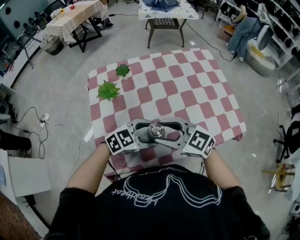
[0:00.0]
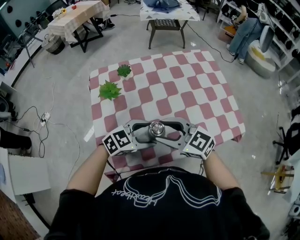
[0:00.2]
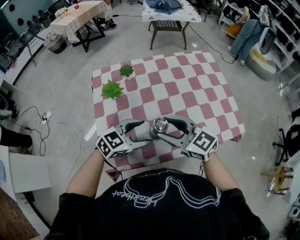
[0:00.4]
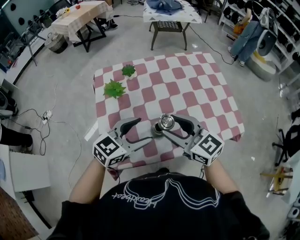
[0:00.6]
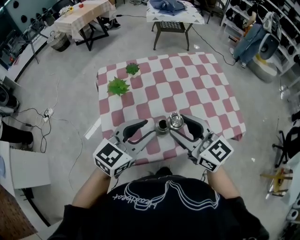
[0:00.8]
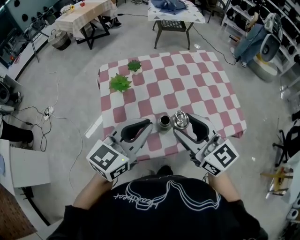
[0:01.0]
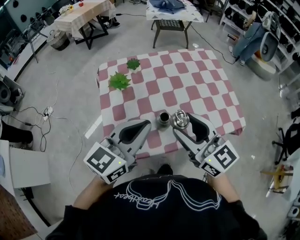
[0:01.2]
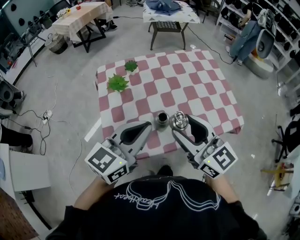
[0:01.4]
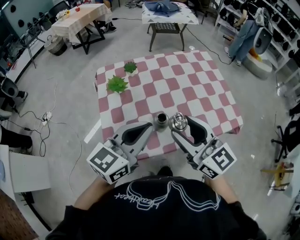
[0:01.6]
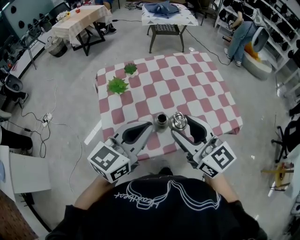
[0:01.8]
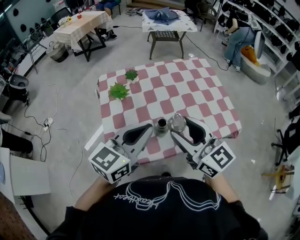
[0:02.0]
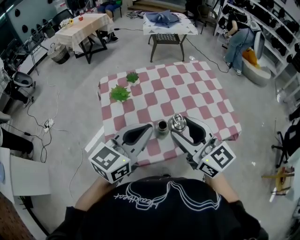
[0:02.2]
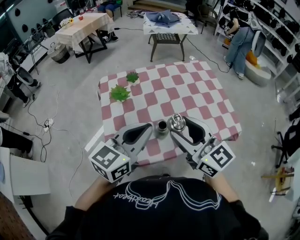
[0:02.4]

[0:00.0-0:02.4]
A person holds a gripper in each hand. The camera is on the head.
0:00.0 to 0:01.2: The left gripper goes about 20 cm upward, turns by approximately 50 degrees, and closes, while the right gripper travels upward by roughly 15 cm, and swivels approximately 30 degrees.
0:01.2 to 0:02.4: The grippers make only small movements.

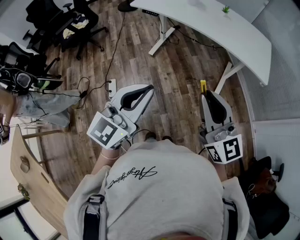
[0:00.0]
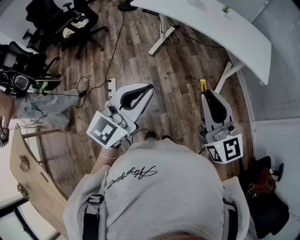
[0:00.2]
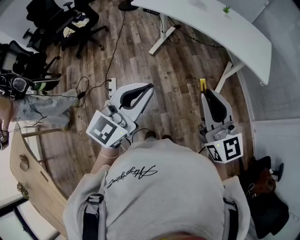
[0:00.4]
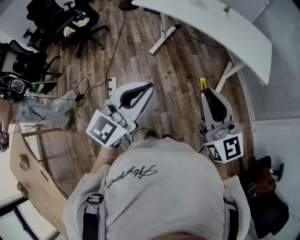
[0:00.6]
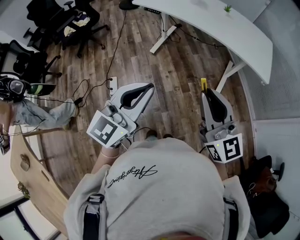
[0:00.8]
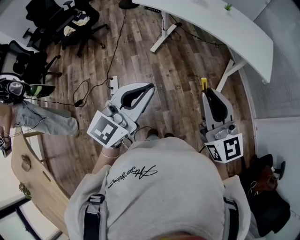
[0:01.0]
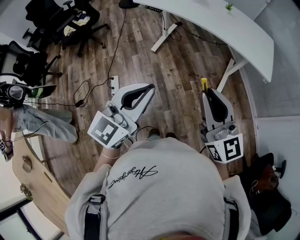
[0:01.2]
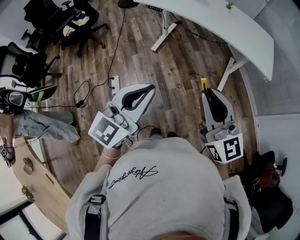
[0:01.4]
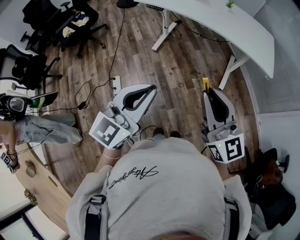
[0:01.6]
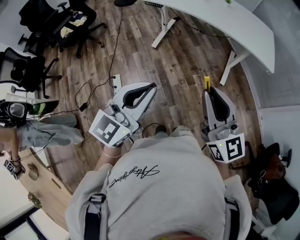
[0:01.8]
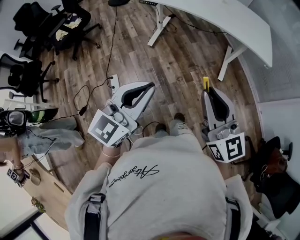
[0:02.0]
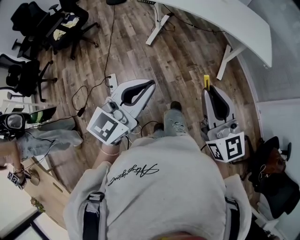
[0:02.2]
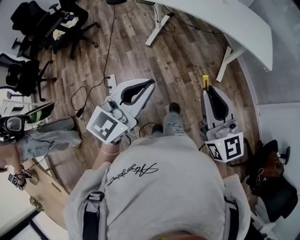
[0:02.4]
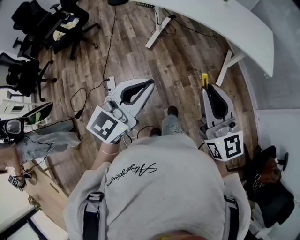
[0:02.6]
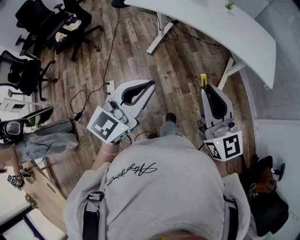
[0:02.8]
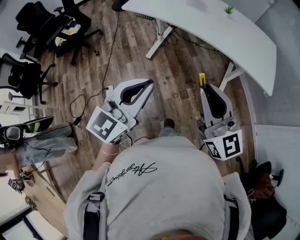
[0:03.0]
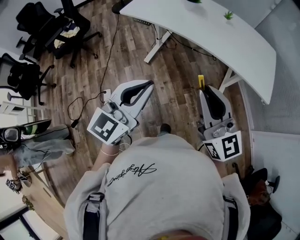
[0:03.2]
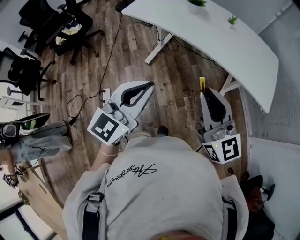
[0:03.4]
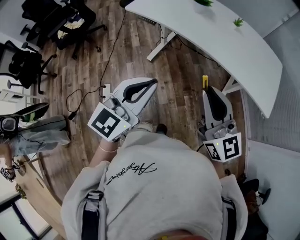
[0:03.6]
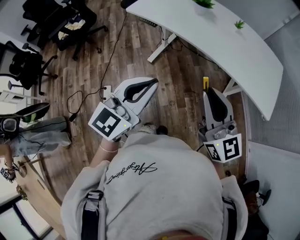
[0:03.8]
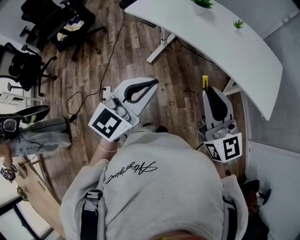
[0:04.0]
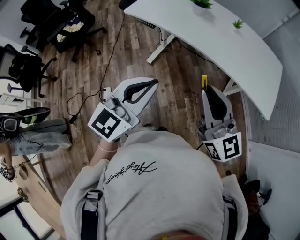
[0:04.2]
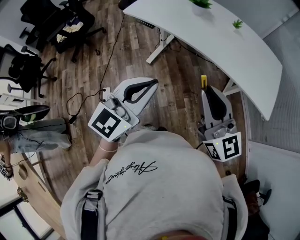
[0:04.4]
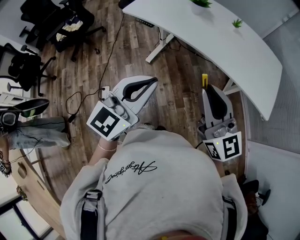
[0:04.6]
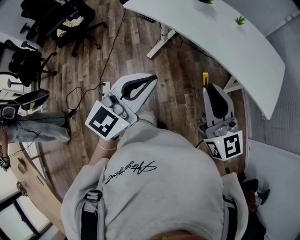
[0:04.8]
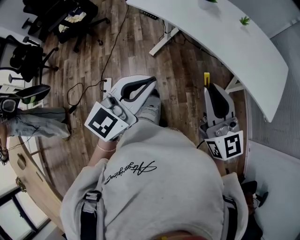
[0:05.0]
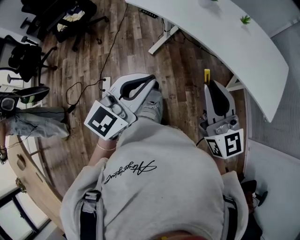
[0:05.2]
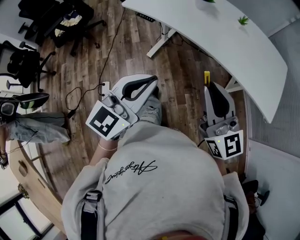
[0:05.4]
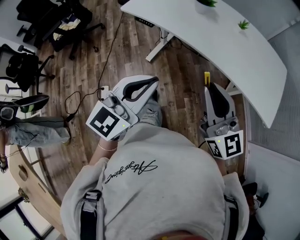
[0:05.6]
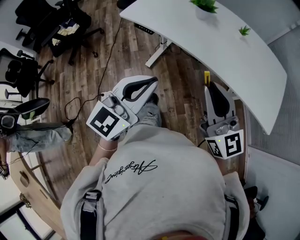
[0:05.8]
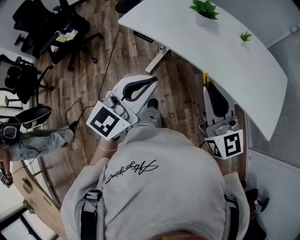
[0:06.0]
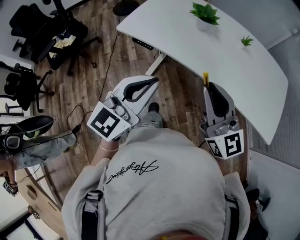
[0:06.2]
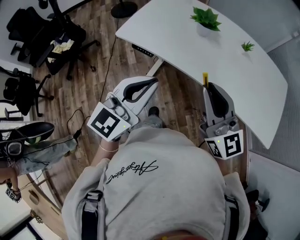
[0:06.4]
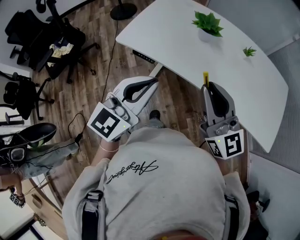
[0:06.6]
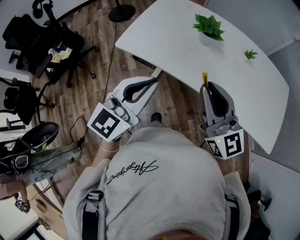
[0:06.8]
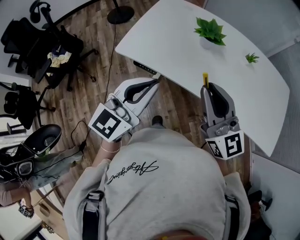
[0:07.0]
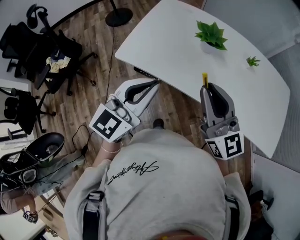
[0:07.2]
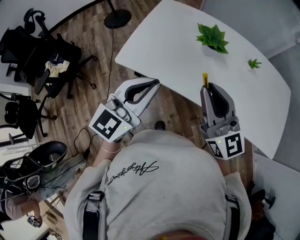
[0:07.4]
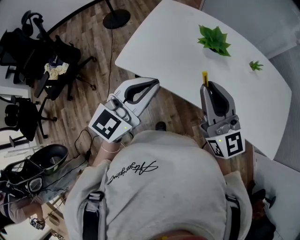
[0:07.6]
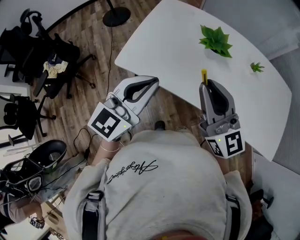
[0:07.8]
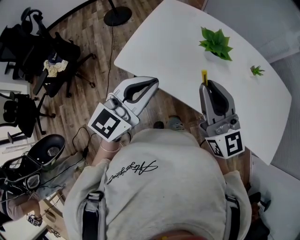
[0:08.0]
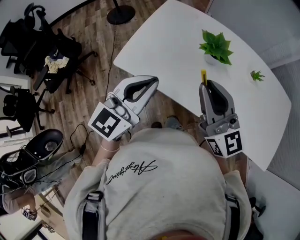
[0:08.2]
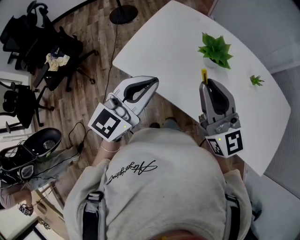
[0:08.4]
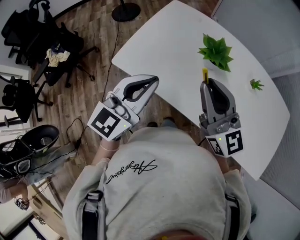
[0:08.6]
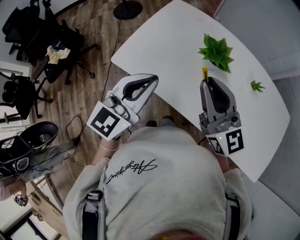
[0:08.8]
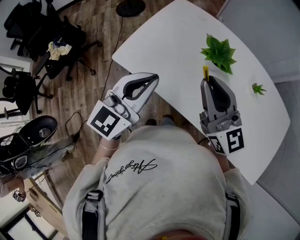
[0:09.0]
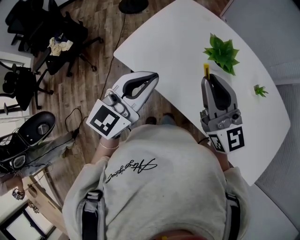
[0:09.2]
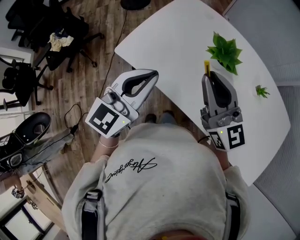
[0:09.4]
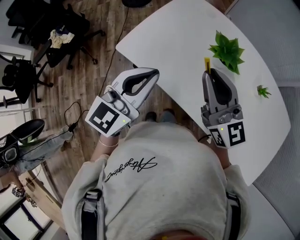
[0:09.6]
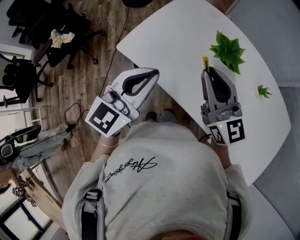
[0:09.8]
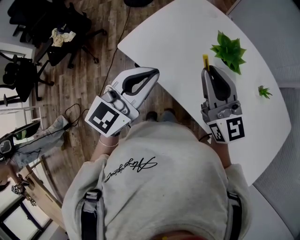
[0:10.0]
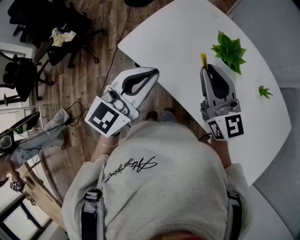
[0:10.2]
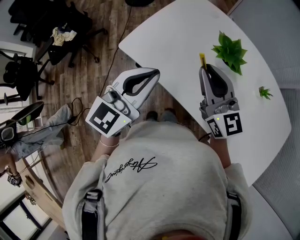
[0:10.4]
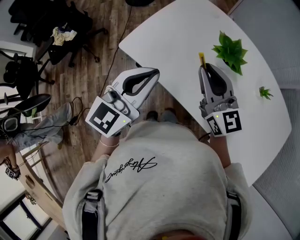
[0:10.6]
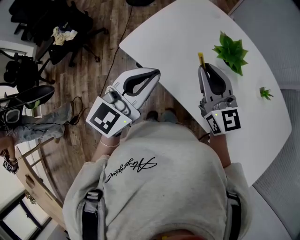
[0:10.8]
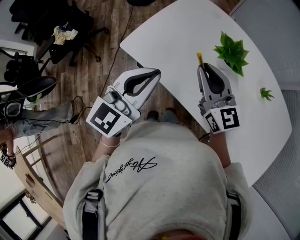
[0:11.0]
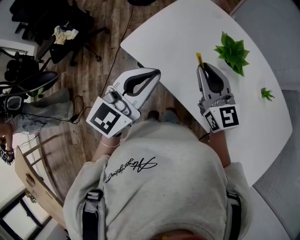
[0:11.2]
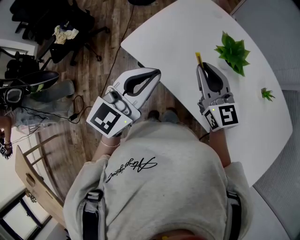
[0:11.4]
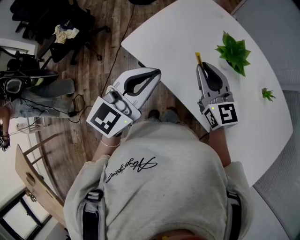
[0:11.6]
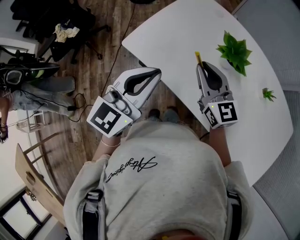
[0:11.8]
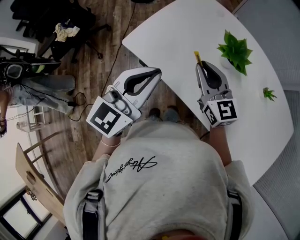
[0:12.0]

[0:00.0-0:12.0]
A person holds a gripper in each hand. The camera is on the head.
0:00.0 to 0:01.6: The grippers both shift to the left by approximately 5 cm.
0:01.6 to 0:03.0: The two grippers go approximately 15 cm forward.
0:03.0 to 0:04.4: The two grippers go approximately 10 cm forward.
0:04.4 to 0:06.0: Both grippers travel together forward, approximately 15 cm.
0:06.0 to 0:07.6: Both grippers travel together forward and to the left, roughly 25 cm.
0:07.6 to 0:09.0: The grippers both shift forward by approximately 5 cm.
0:09.0 to 0:10.4: The right gripper changes place by approximately 5 cm.
0:10.4 to 0:12.0: The right gripper shifts approximately 5 cm downward.

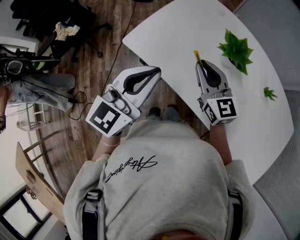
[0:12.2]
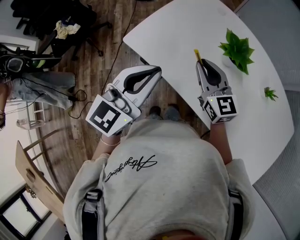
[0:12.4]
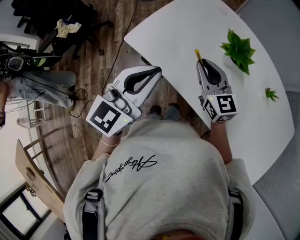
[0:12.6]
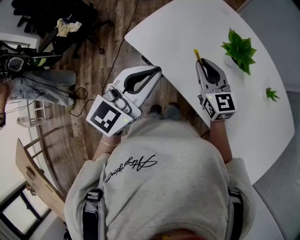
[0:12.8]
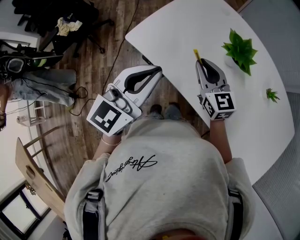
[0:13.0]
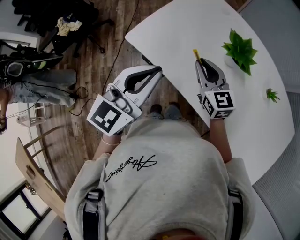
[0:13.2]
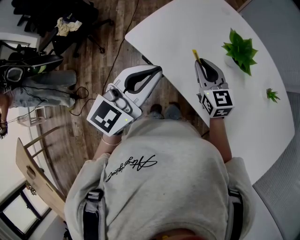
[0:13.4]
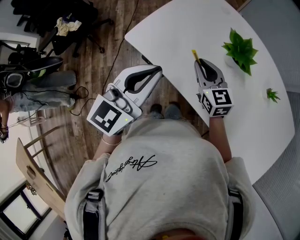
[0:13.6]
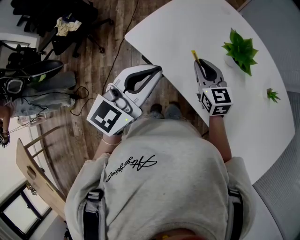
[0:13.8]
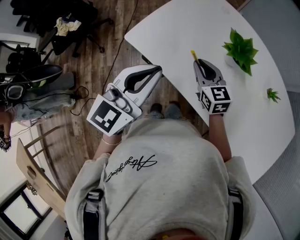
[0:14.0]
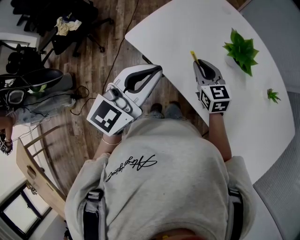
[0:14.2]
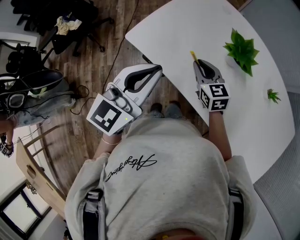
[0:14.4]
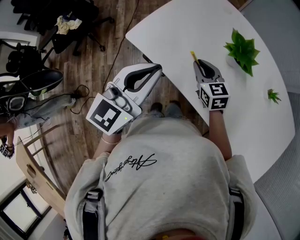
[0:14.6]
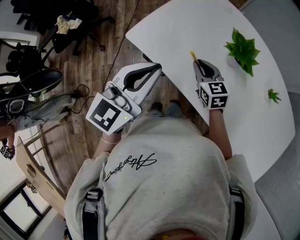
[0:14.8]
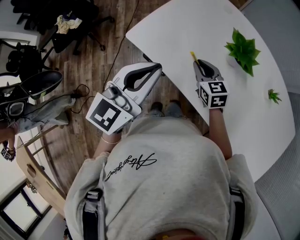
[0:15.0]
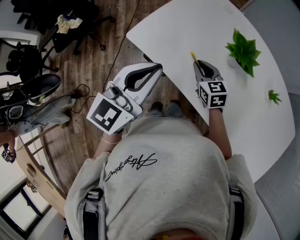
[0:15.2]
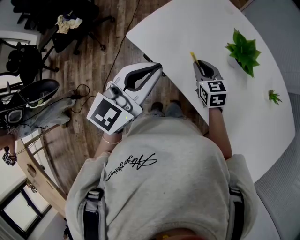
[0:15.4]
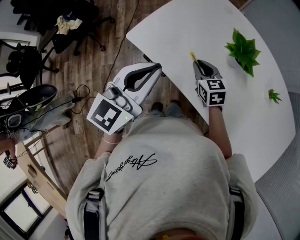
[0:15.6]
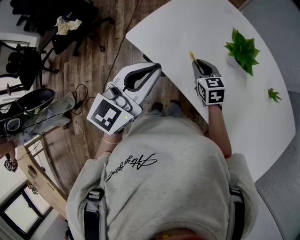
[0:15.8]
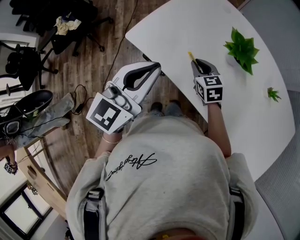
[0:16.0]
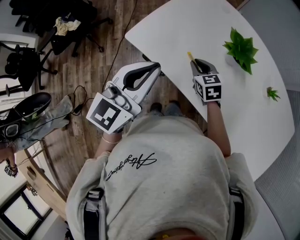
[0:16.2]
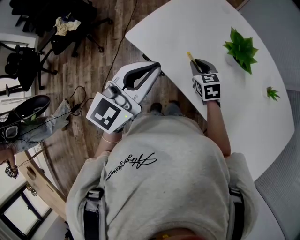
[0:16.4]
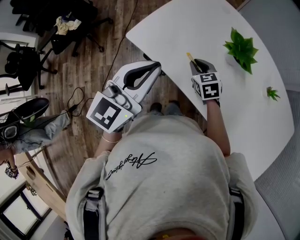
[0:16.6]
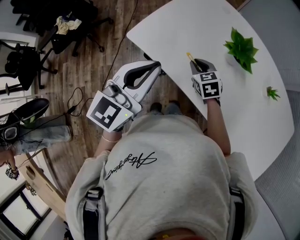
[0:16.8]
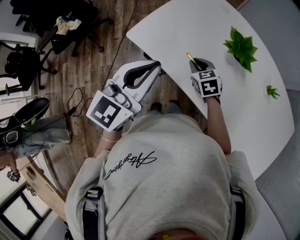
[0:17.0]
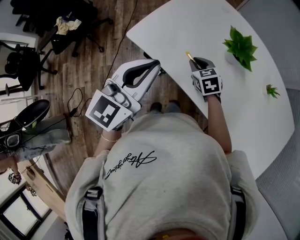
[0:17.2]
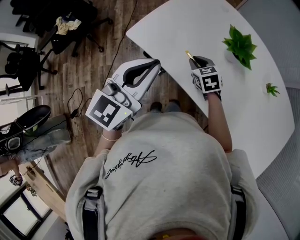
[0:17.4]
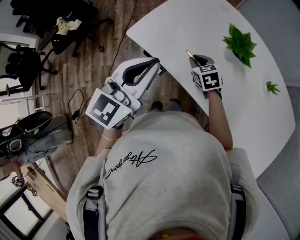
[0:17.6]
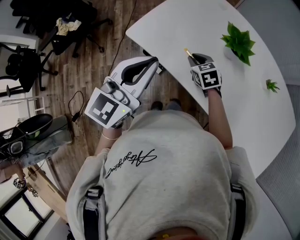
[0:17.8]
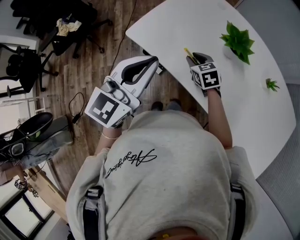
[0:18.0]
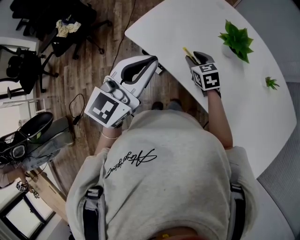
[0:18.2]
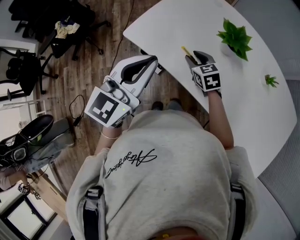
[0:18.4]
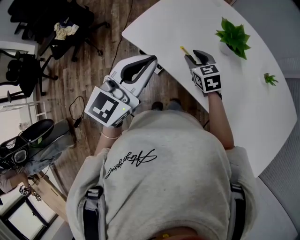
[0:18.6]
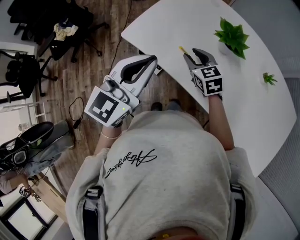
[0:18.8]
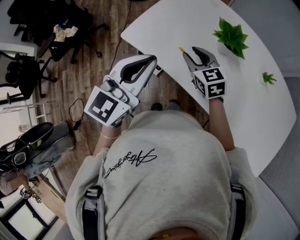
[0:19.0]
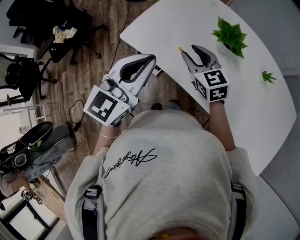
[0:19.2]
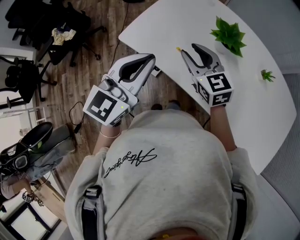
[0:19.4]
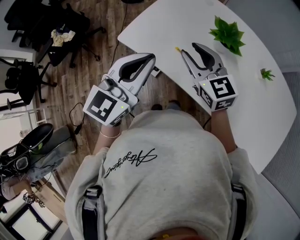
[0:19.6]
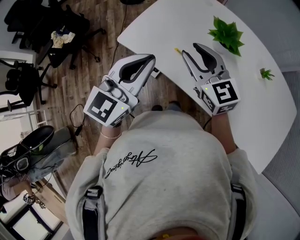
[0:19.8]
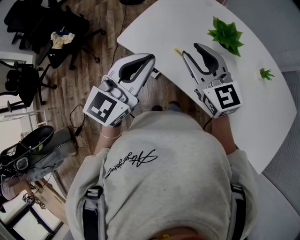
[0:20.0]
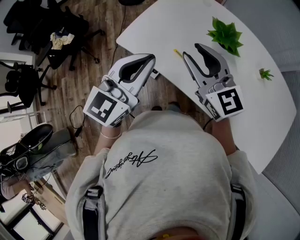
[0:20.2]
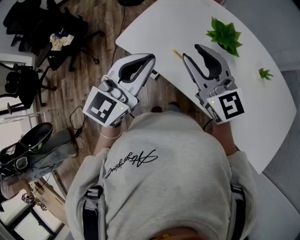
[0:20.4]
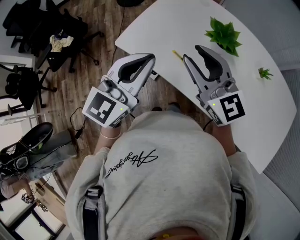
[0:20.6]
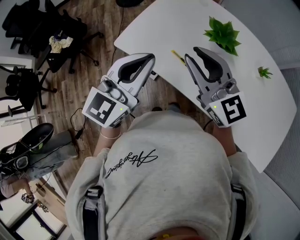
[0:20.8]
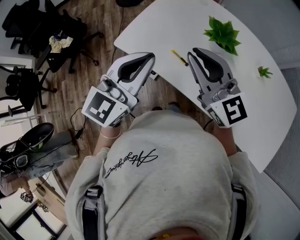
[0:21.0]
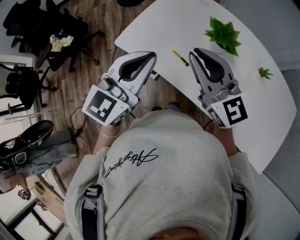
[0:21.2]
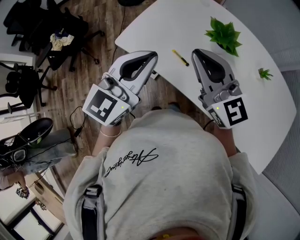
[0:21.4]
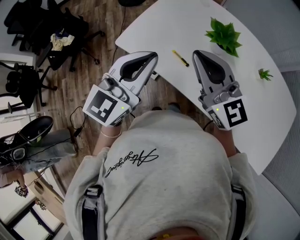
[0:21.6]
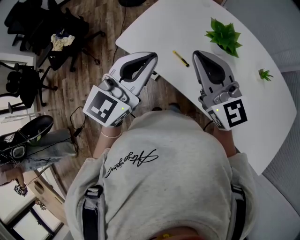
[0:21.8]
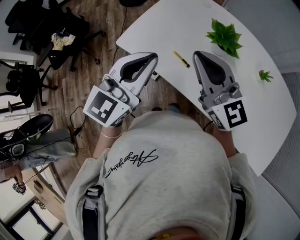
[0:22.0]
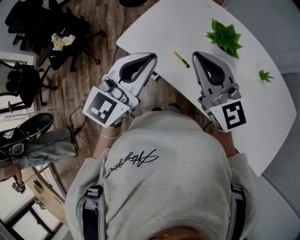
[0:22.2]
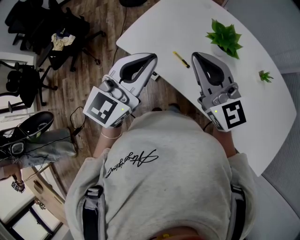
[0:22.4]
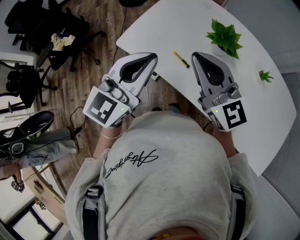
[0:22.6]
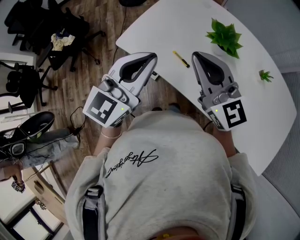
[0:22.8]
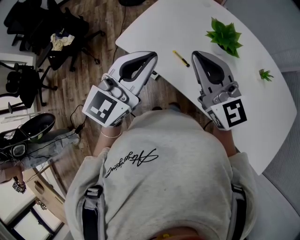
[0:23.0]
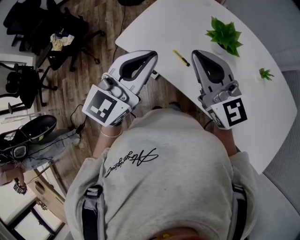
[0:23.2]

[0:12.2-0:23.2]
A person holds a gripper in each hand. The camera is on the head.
0:12.2 to 0:13.8: The right gripper goes about 5 cm downward.
0:13.8 to 0:15.4: The right gripper travels downward by some 5 cm.
0:15.4 to 0:17.0: The grippers move only a little.
0:17.0 to 0:18.4: The right gripper opens its fingers.
0:18.4 to 0:20.0: The right gripper heads upward, covering roughly 20 cm, and angles its fingers upward, by roughly 30 degrees.
0:20.0 to 0:21.6: The right gripper travels upward by some 5 cm, and closes up.
0:21.6 to 0:23.2: The two grippers keep their place.
